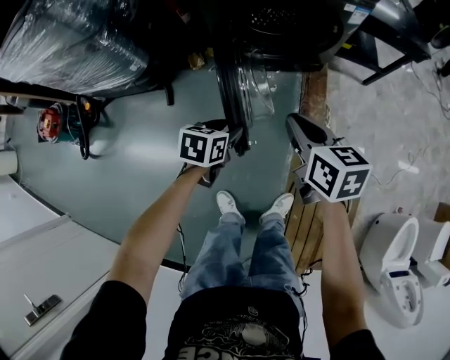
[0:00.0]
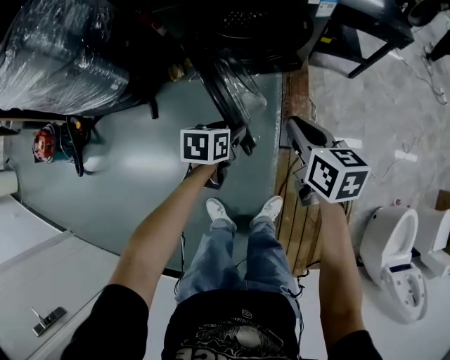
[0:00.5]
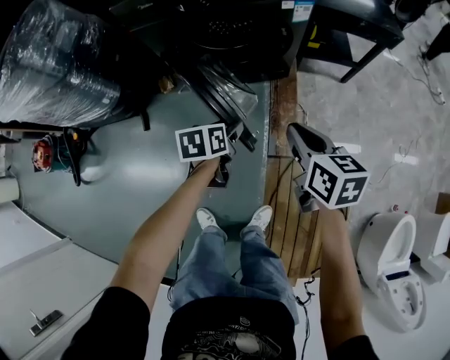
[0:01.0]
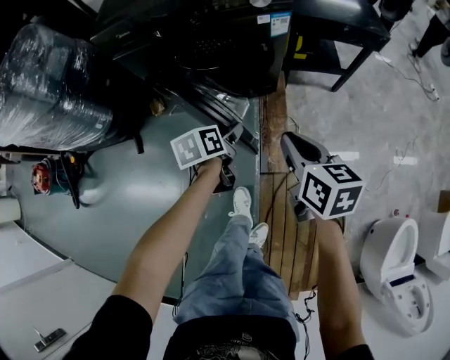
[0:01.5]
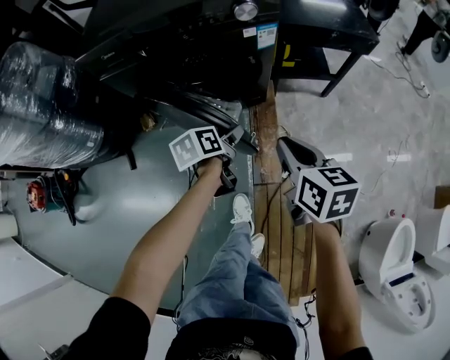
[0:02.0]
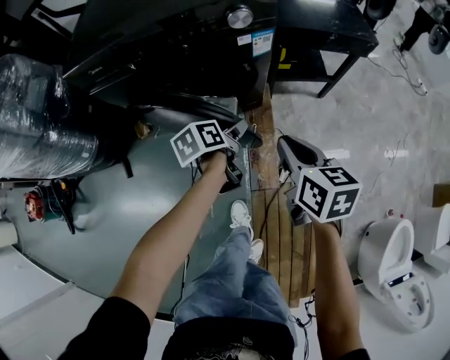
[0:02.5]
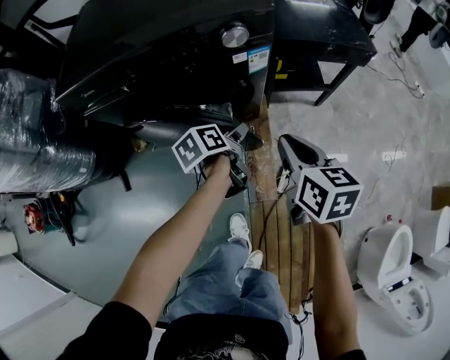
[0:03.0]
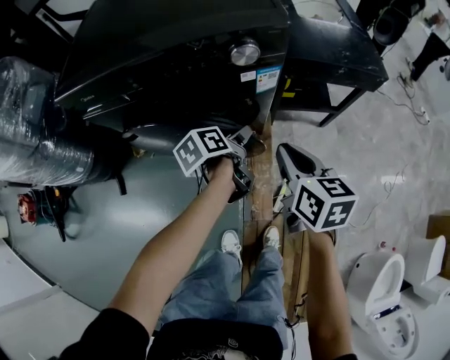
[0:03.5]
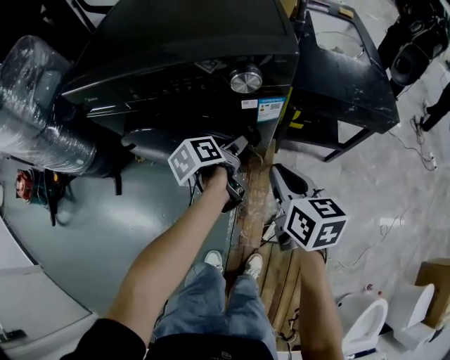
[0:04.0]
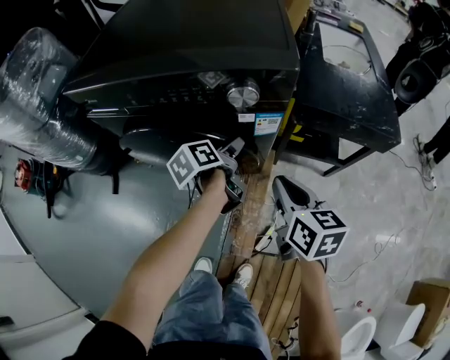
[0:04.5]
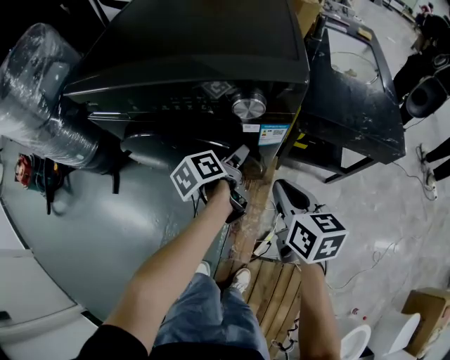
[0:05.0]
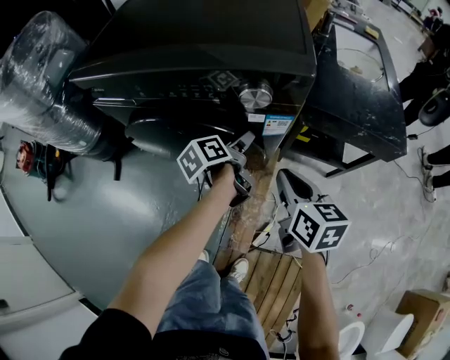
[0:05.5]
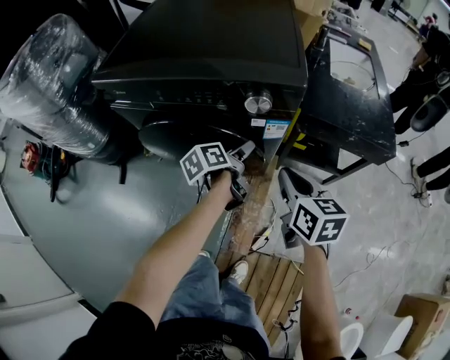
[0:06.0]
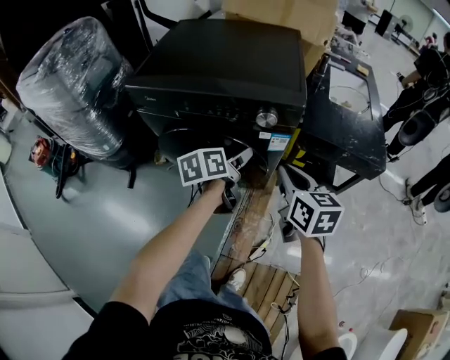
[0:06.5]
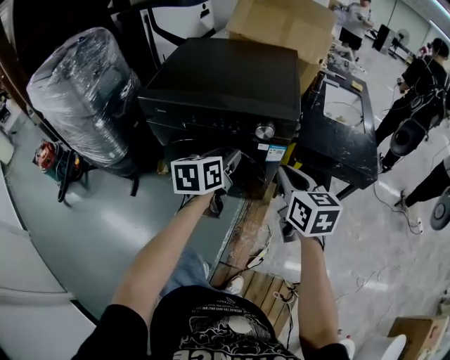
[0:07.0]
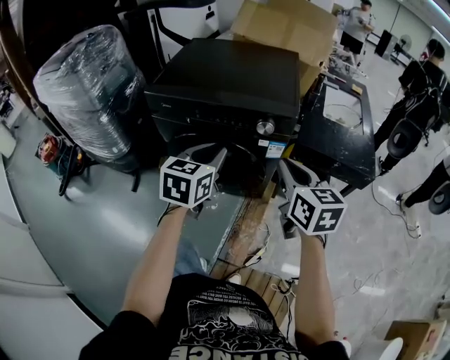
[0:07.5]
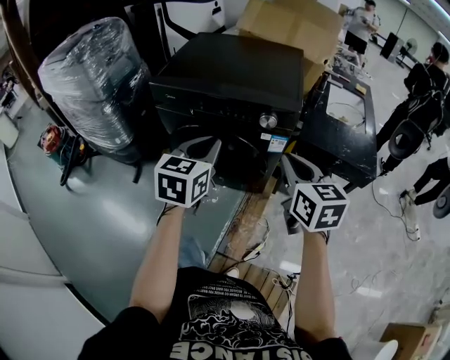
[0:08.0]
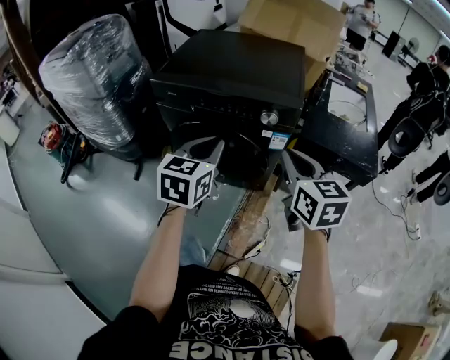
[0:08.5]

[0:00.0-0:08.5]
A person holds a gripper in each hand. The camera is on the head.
0:00.0 to 0:02.0: The two grippers go approximately 25 cm to the right and forward. The left gripper swivels roughly 30 degrees.
0:02.0 to 0:04.0: Both grippers travel together forward, roughly 20 cm. The left gripper rotates roughly 20 degrees.
0:04.0 to 0:06.5: The two grippers go some 15 cm upward. The left gripper turns by approximately 20 degrees.
0:06.5 to 0:08.5: Both grippers move upward and backward, some 15 cm. The left gripper twists some 40 degrees clockwise, seen from behind, and closes its fingers.

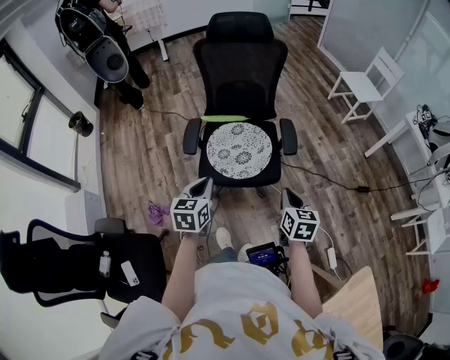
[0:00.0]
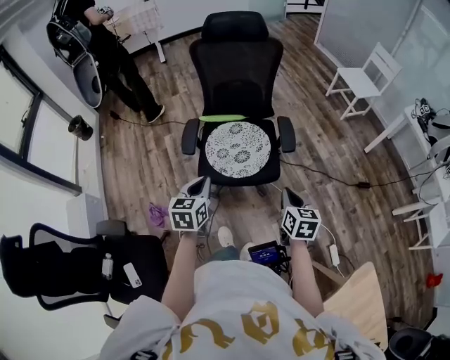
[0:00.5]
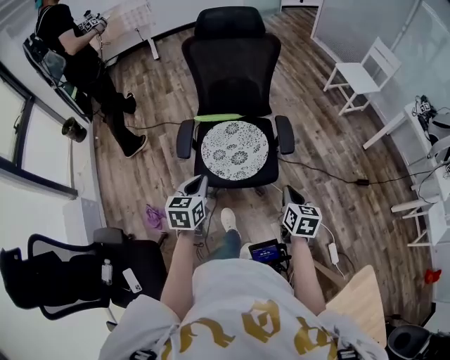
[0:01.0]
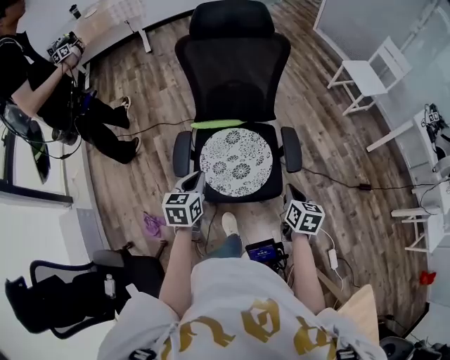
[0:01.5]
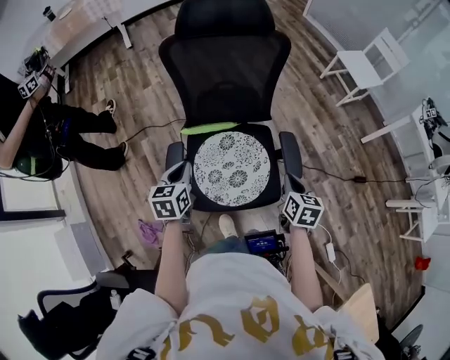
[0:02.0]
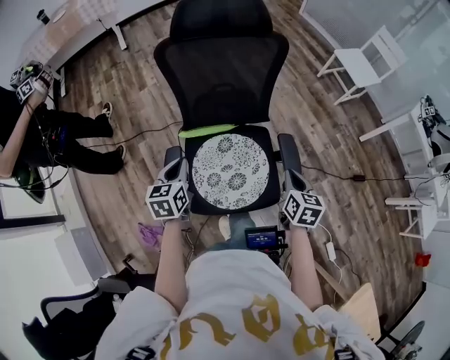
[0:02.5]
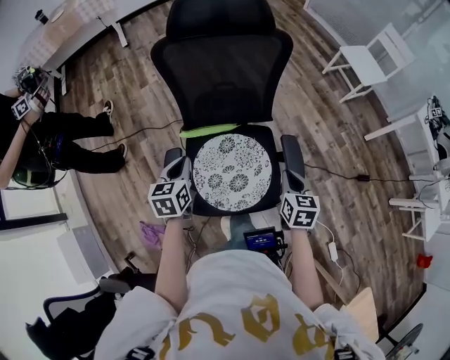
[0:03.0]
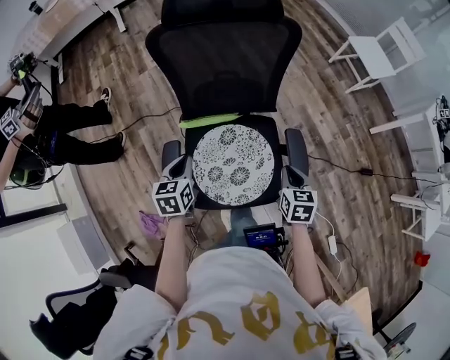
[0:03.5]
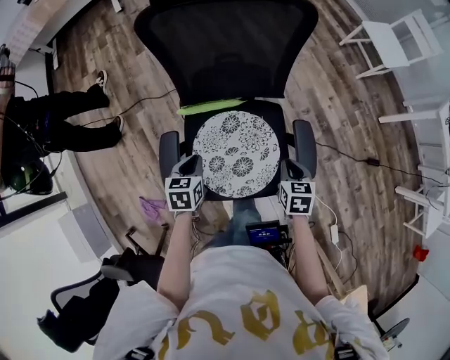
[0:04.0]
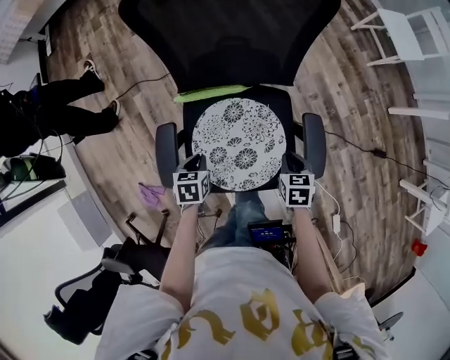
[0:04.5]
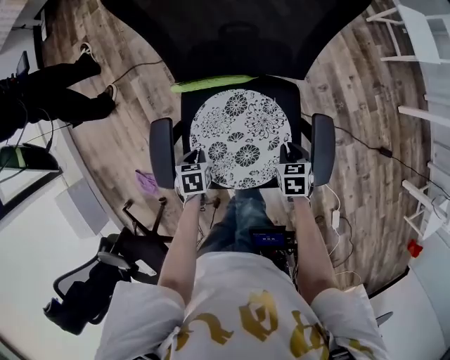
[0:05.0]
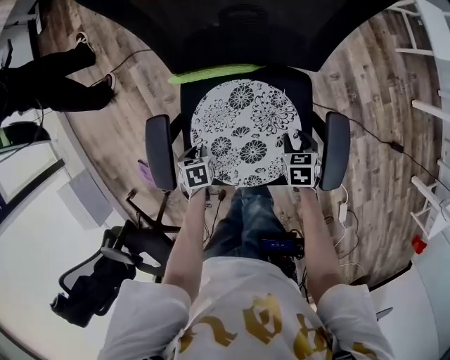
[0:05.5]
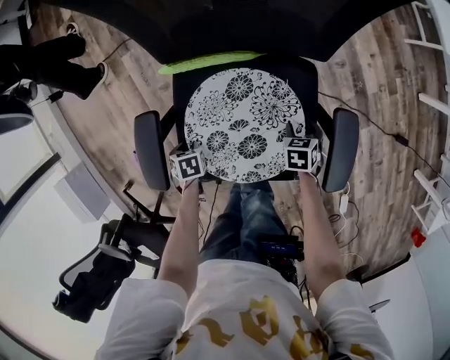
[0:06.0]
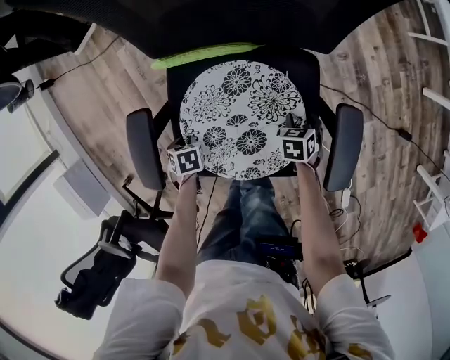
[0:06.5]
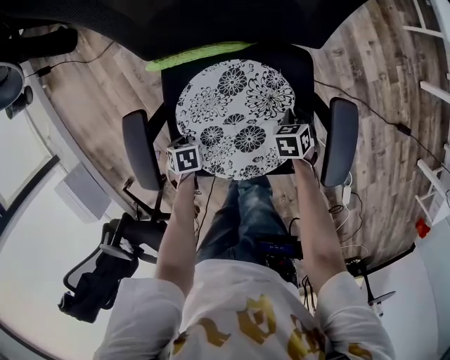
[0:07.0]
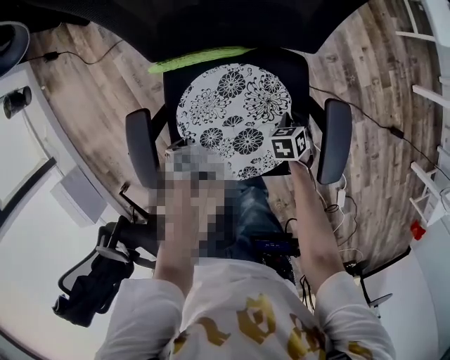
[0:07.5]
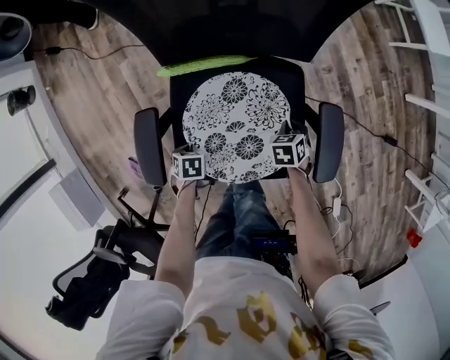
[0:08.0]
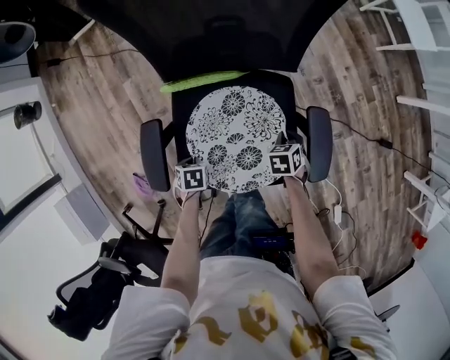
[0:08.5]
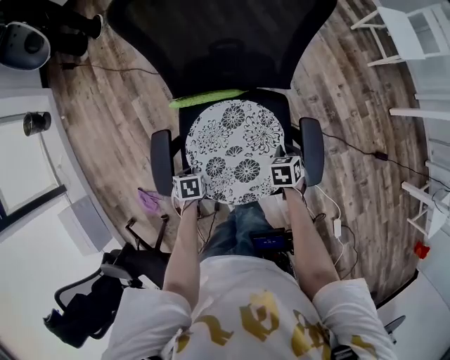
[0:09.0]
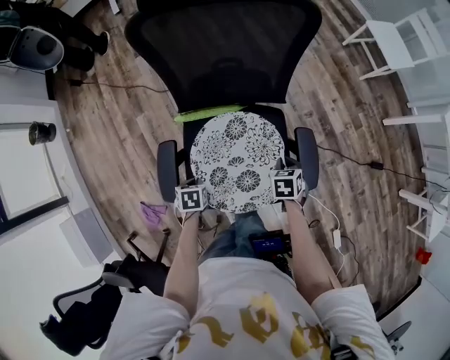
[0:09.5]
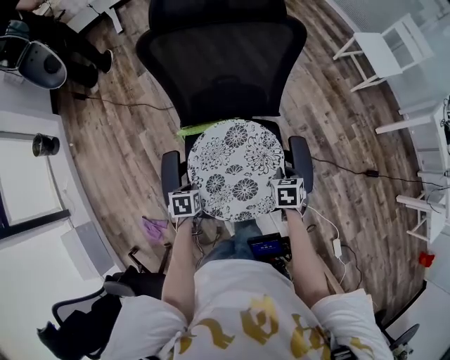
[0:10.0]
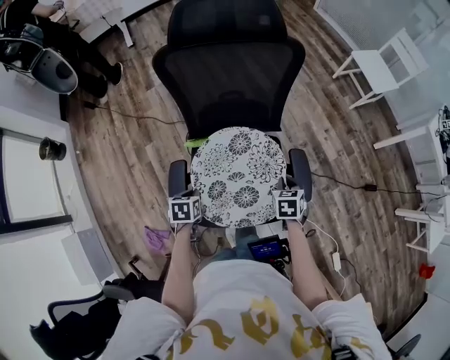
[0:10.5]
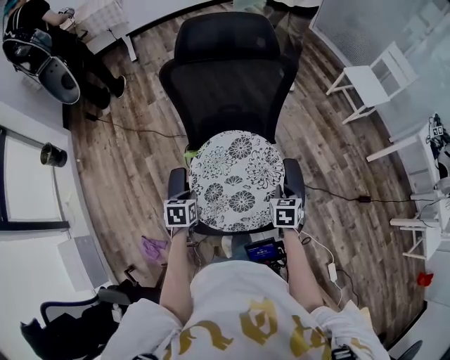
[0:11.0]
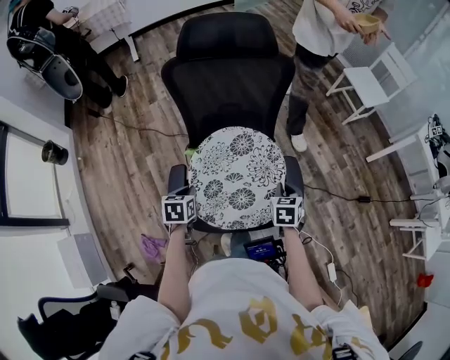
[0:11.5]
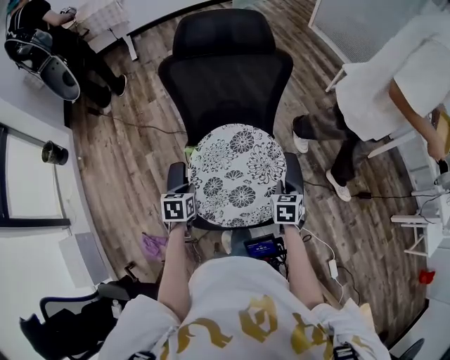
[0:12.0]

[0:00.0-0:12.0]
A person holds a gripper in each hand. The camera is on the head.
0:00.0 to 0:02.0: The grippers both shift forward by about 30 cm.
0:02.0 to 0:04.0: The left gripper heads downward, covering roughly 15 cm. The right gripper heads downward and forward, covering roughly 15 cm.
0:04.0 to 0:06.0: Both grippers move downward, about 30 cm. The right gripper changes its angle by about 20 degrees, and opens; the left gripper tilts its fingers roughly 30 degrees downward, and opens.
0:06.0 to 0:08.0: The left gripper closes its fingers. The right gripper closes.
0:08.0 to 0:10.0: The two grippers go some 20 cm upward. The left gripper swivels some 20 degrees.
0:10.0 to 0:12.0: Both grippers move upward, some 10 cm.

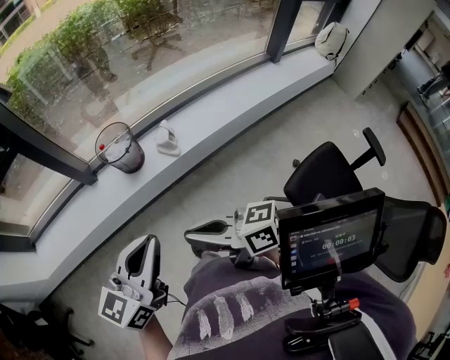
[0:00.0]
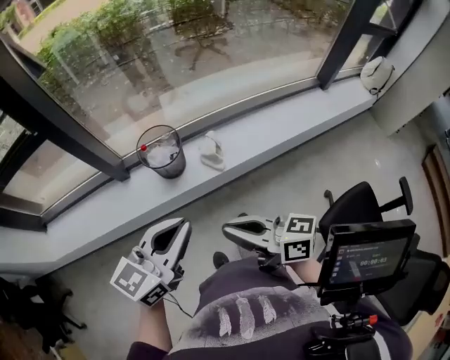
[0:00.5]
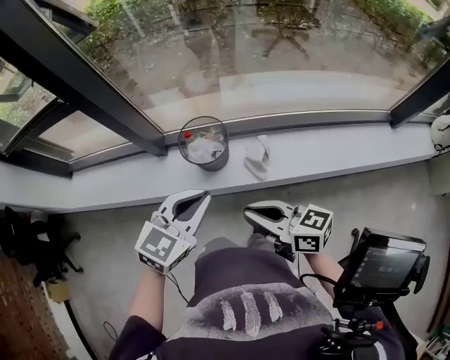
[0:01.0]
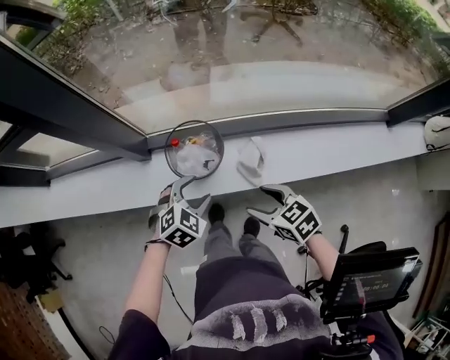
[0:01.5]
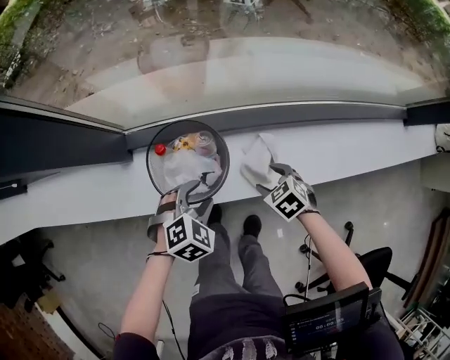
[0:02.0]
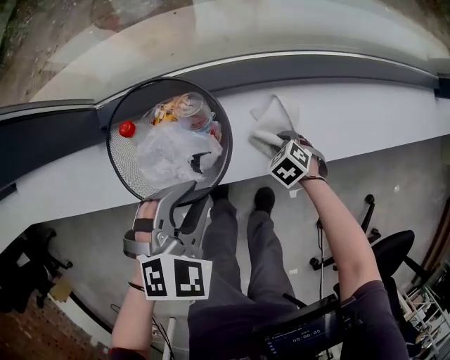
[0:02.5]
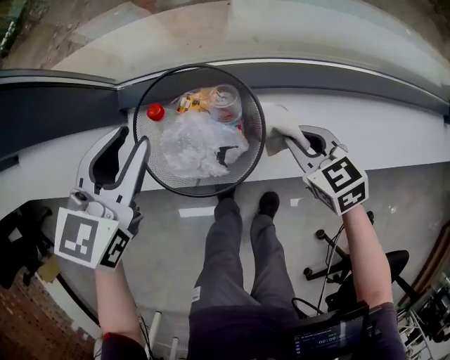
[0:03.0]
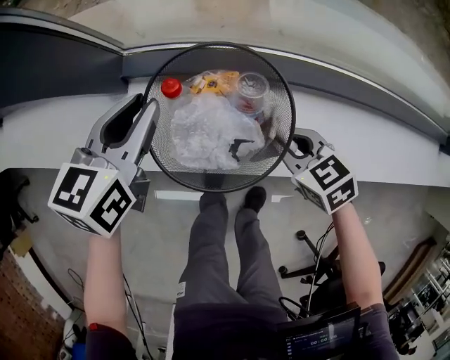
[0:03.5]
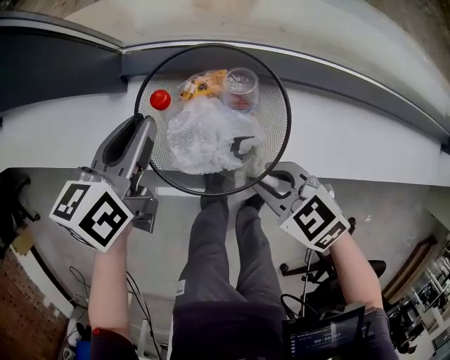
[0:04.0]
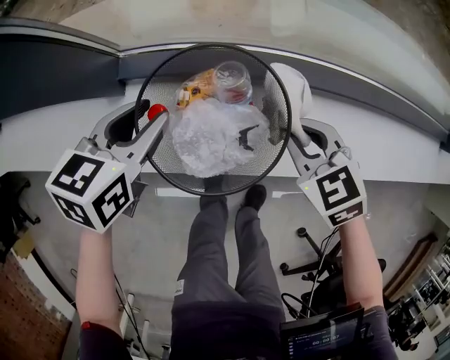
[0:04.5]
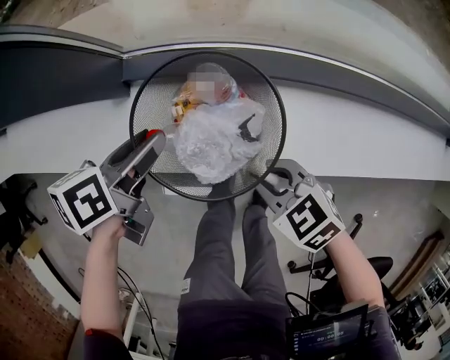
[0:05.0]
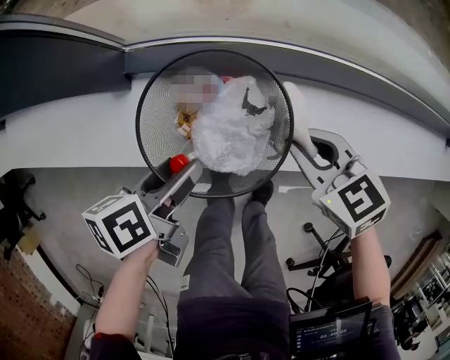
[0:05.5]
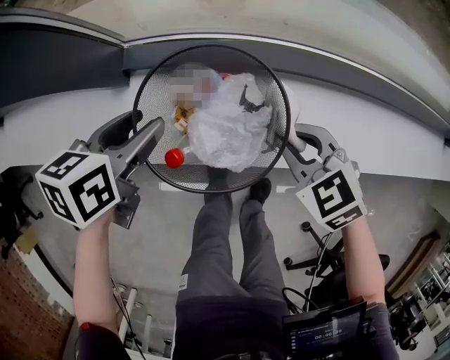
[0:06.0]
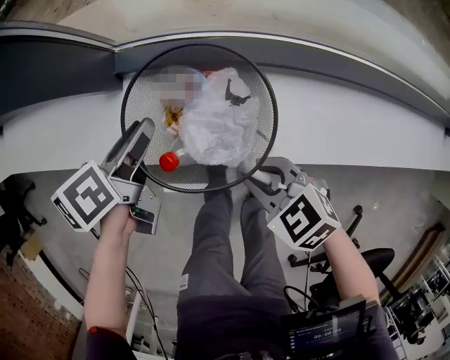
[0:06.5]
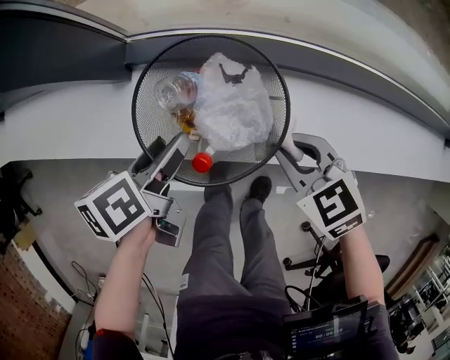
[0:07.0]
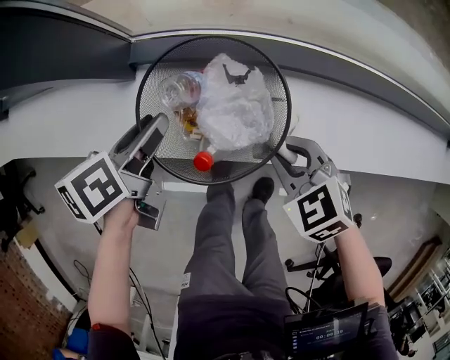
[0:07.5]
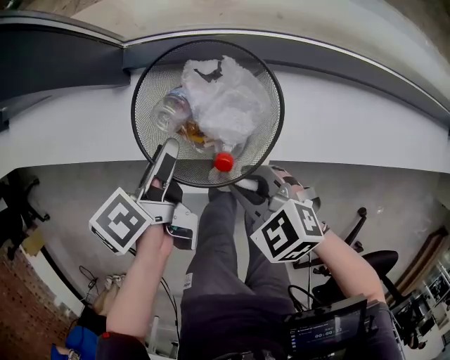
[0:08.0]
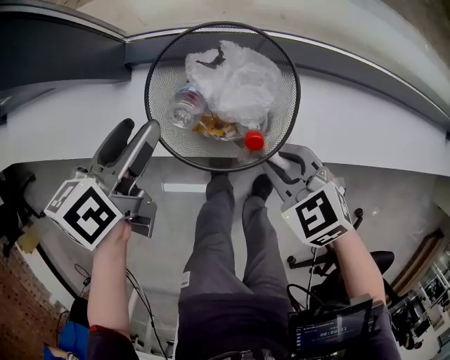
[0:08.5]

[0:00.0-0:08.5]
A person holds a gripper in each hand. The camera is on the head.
0:00.0 to 0:02.0: The two grippers go approximately 50 cm downward and forward. The right gripper tips its fingers downward by roughly 70 degrees, and opens. Meanwhile the left gripper points its fingers about 60 degrees further downward, and opens up.
0:02.0 to 0:04.0: The right gripper reaches approximately 15 cm downward, then returns, swivels some 30 degrees, and closes up, while the left gripper goes upward and returns, some 10 cm each way, twists approximately 70 degrees counterclockwise, seen from behind, and closes its fingers.
0:04.0 to 0:06.5: The left gripper travels backward and back again, some 10 cm each way, swivels approximately 20 degrees, and opens, then closes once more; the right gripper moves forward and backward over some 10 cm, changing direction 3 times.
0:06.5 to 0:08.5: The left gripper moves forward and backward over roughly 5 cm, changing direction 3 times, and opens its fingers. Meanwhile the right gripper moves left and right over approximately 10 cm, changing direction 2 times.
